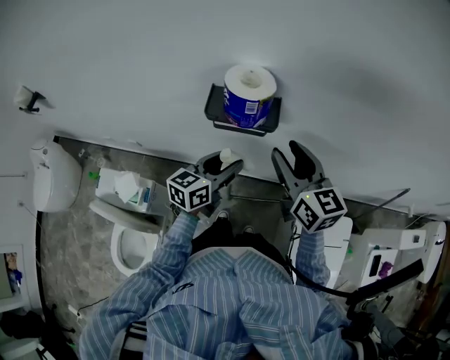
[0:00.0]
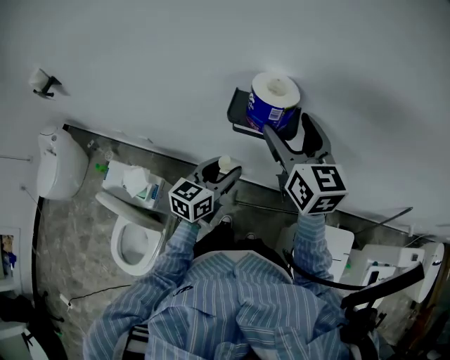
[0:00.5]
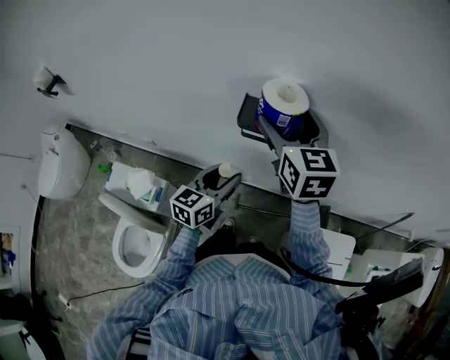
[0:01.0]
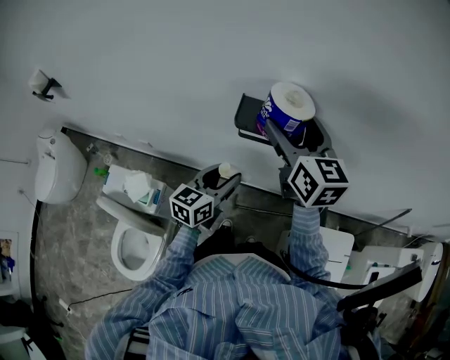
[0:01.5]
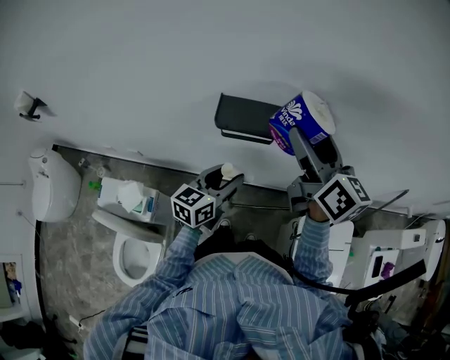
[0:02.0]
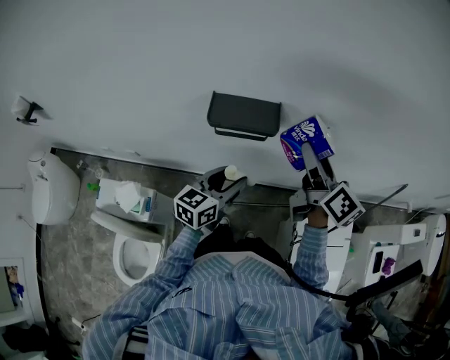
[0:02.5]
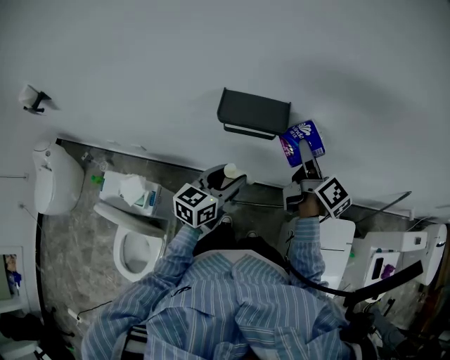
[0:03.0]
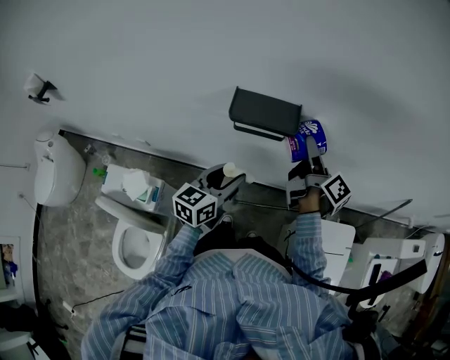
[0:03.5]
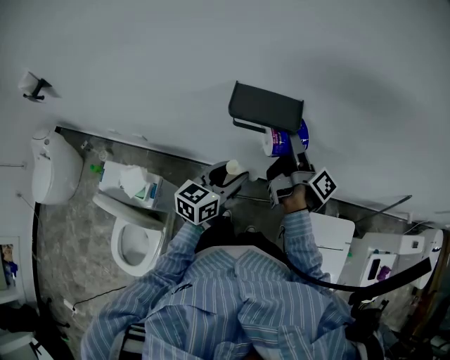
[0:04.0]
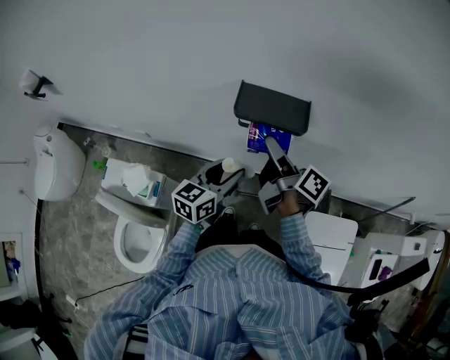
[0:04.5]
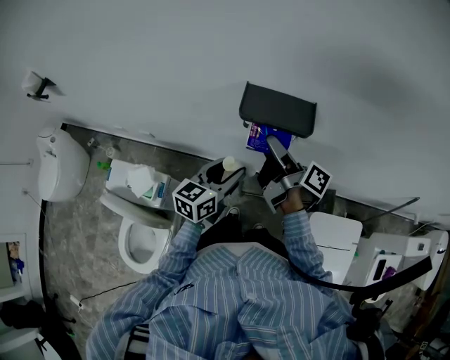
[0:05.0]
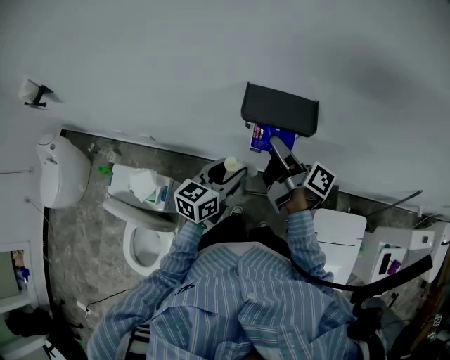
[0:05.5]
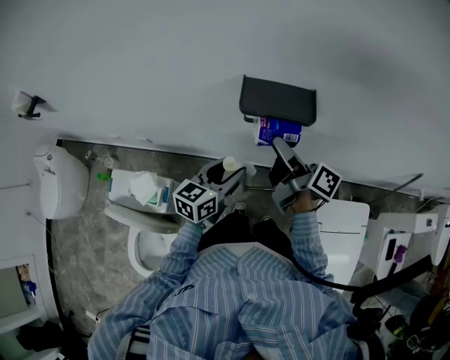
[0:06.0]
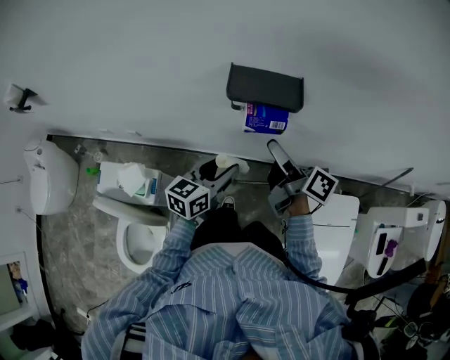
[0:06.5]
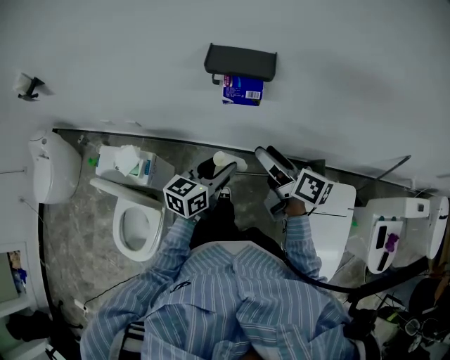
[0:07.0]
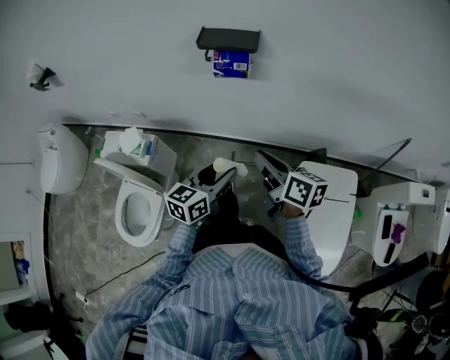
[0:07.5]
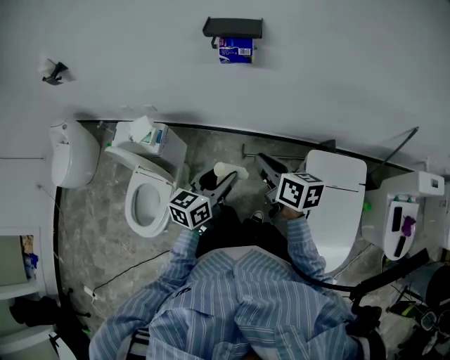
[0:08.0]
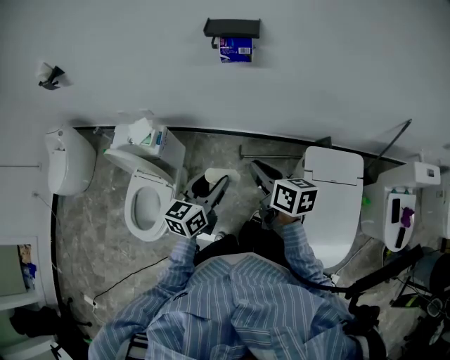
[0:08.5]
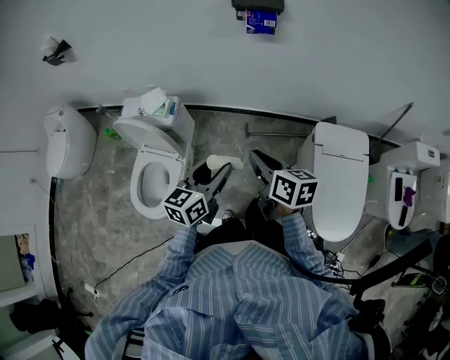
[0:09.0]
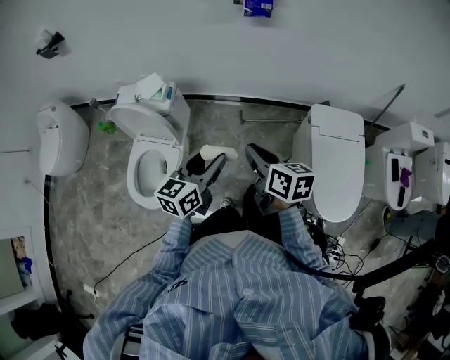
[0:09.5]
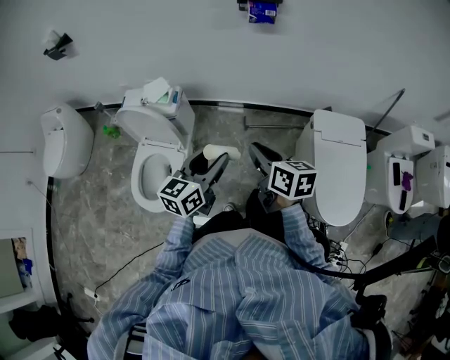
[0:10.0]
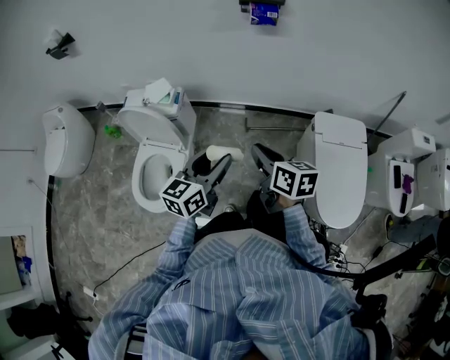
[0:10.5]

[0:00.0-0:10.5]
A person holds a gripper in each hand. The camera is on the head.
0:00.0 to 0:02.0: The right gripper goes approximately 10 cm upward, goes to the left and returns, some 10 cm each way, changes its angle by about 20 degrees, and opens.
0:02.0 to 0:04.0: The right gripper goes roughly 15 cm downward, and rolls clockwise, seen from behind, by about 60 degrees.
0:04.0 to 0:06.5: The right gripper shifts some 5 cm backward, and rotates about 20 degrees.
0:06.5 to 0:08.5: Both grippers move backward, approximately 30 cm. The right gripper swivels roughly 30 degrees, and closes up.
0:08.5 to 0:10.5: The two grippers go roughly 20 cm backward and to the left.

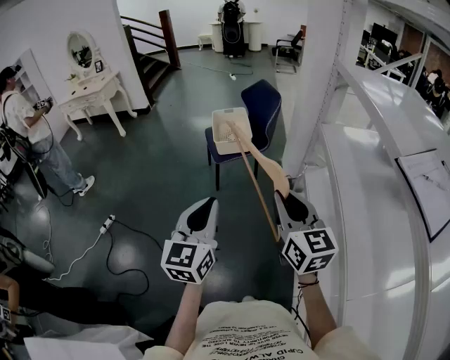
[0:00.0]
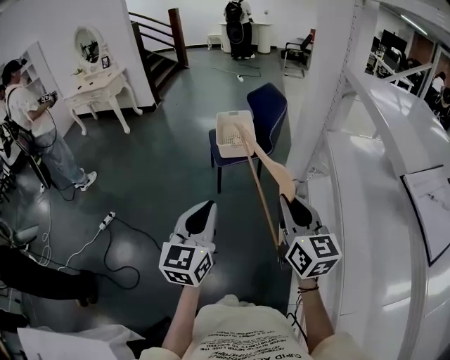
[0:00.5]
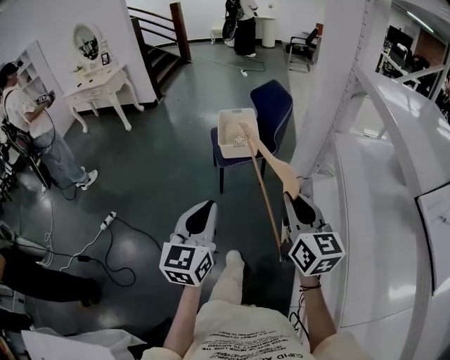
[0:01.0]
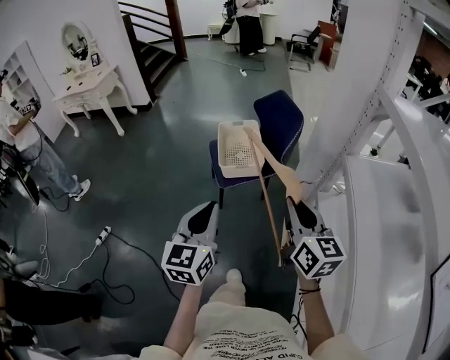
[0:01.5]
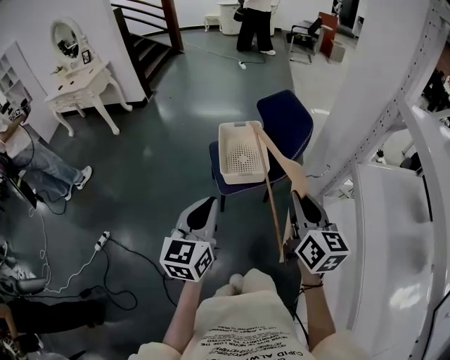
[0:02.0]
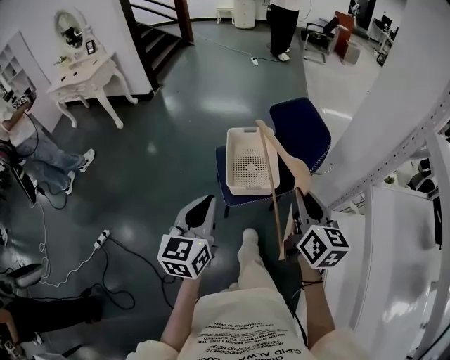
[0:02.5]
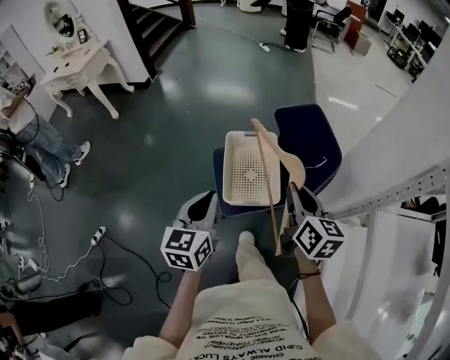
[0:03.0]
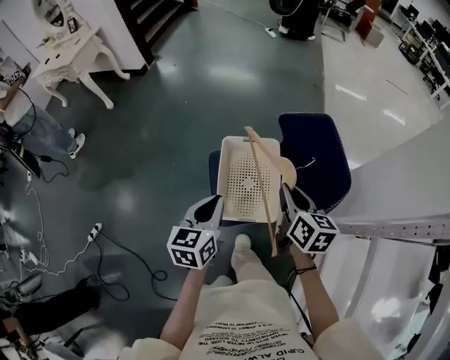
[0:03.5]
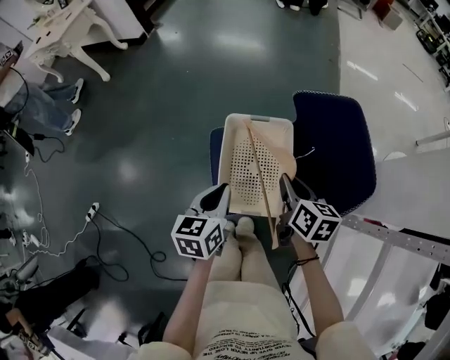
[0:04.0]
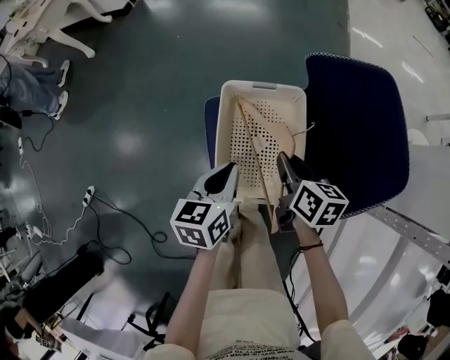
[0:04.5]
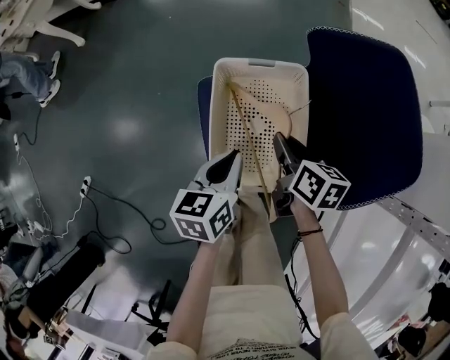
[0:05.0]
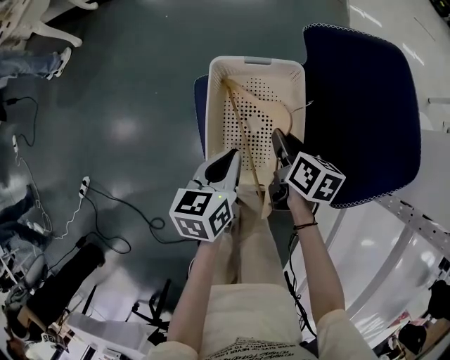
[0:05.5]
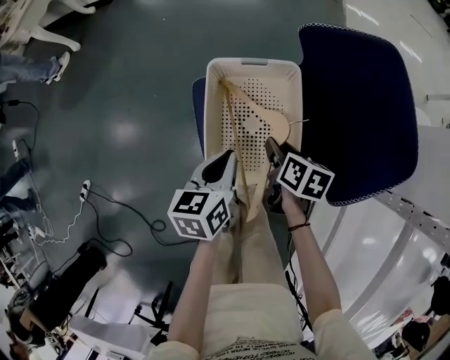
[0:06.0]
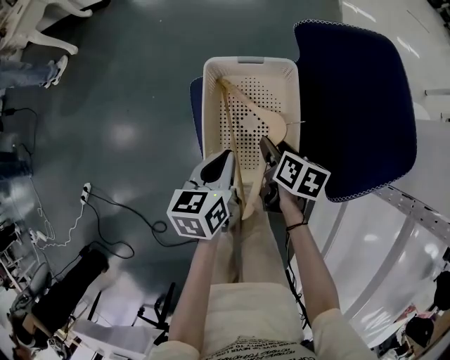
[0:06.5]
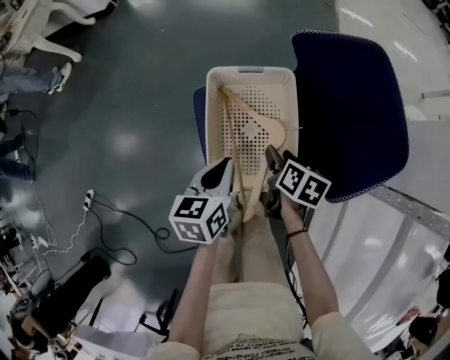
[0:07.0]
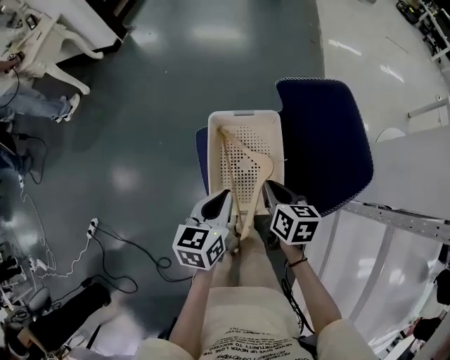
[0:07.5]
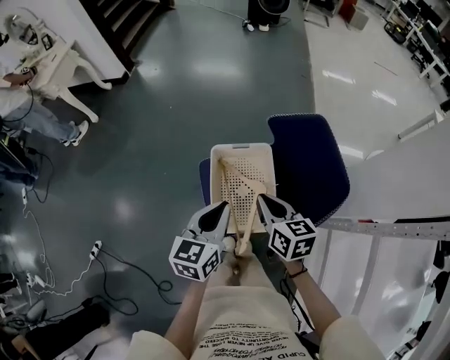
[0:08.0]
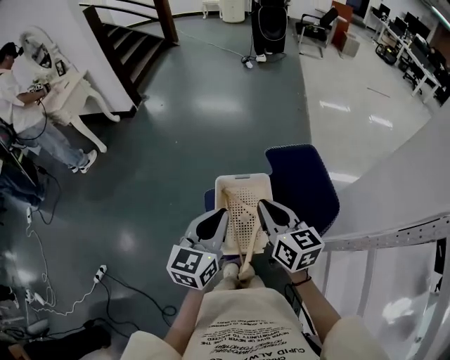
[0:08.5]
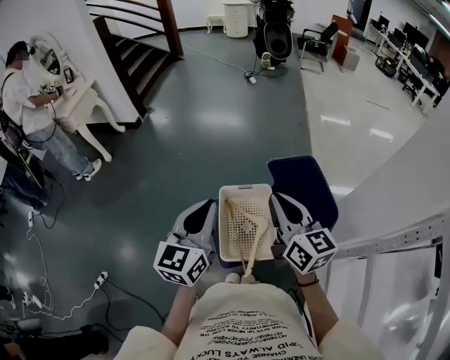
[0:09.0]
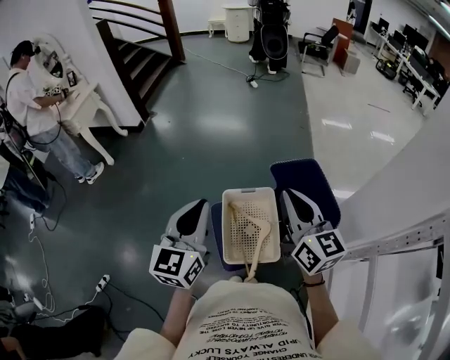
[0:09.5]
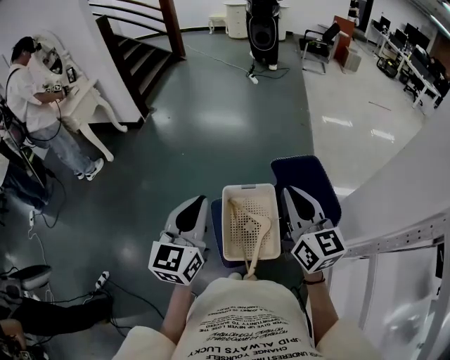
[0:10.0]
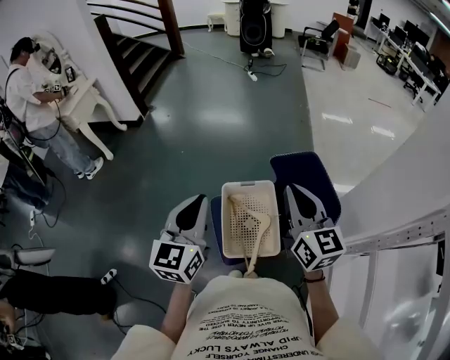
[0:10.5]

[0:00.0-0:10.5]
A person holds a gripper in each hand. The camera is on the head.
0:00.0 to 0:02.0: Both grippers move forward, approximately 35 cm.
0:02.0 to 0:04.0: Both grippers travel together forward and downward, roughly 50 cm. The left gripper swivels approximately 30 degrees. The right gripper turns by approximately 30 degrees.
0:04.0 to 0:06.5: The right gripper shifts roughly 15 cm downward, rotates some 20 degrees, and opens; the left gripper heads downward, covering approximately 10 cm.
0:06.5 to 0:08.5: Both grippers travel together upward, about 30 cm. The right gripper points its fingers about 30 degrees further upward, and closes its fingers; the left gripper swivels some 30 degrees.
0:08.5 to 0:10.5: The left gripper goes approximately 10 cm upward and to the left, while the right gripper travels upward by approximately 10 cm, and turns by roughly 20 degrees.

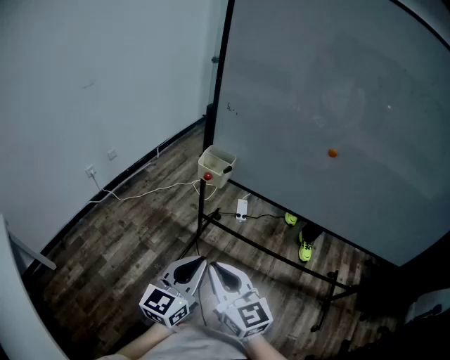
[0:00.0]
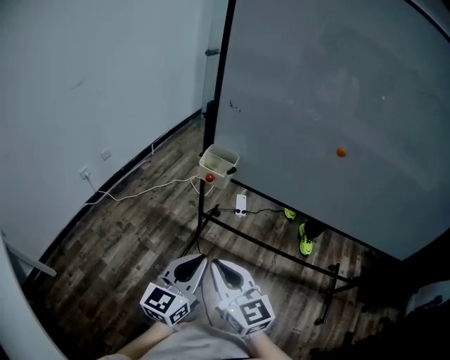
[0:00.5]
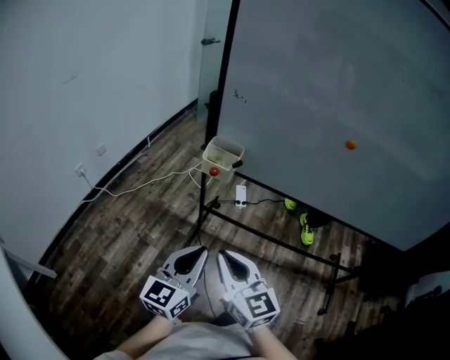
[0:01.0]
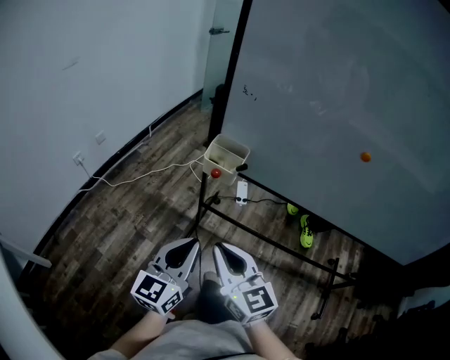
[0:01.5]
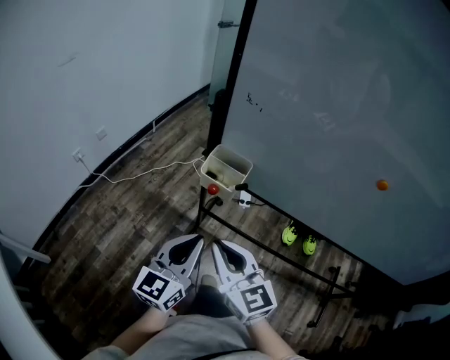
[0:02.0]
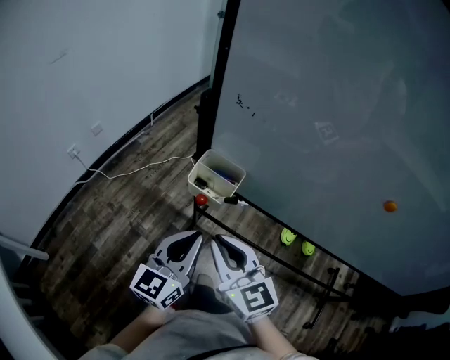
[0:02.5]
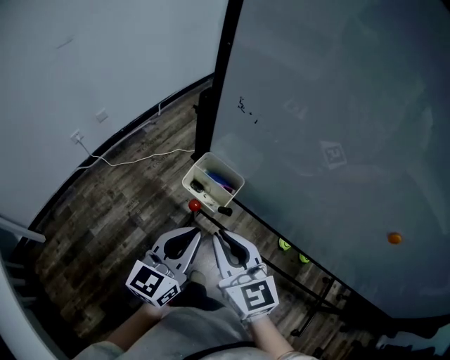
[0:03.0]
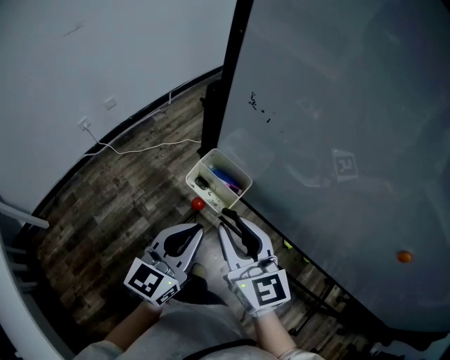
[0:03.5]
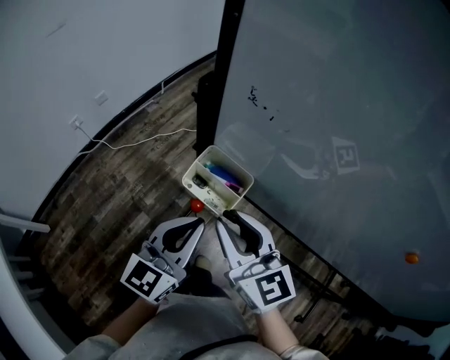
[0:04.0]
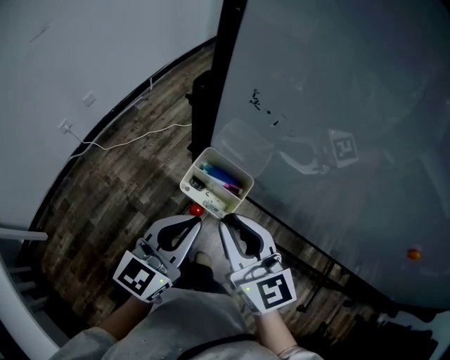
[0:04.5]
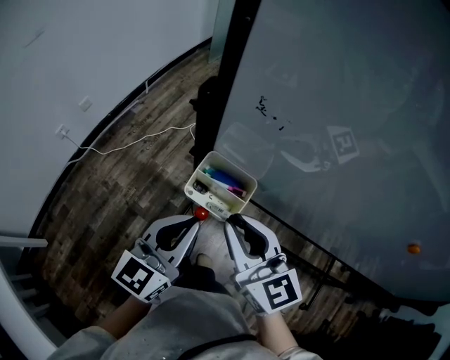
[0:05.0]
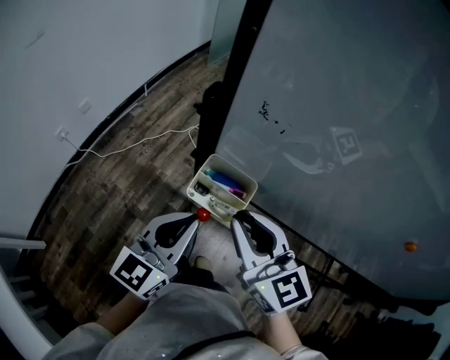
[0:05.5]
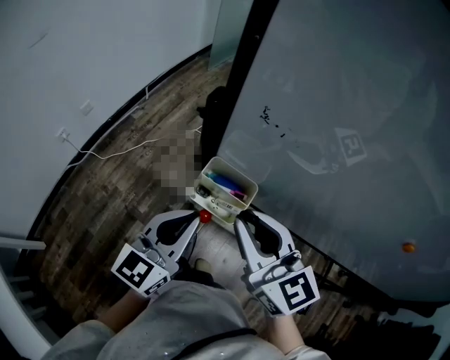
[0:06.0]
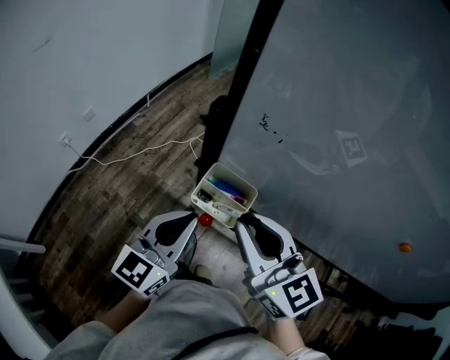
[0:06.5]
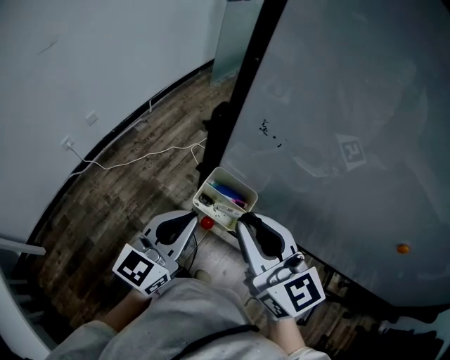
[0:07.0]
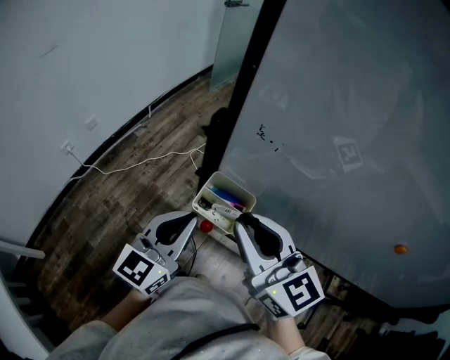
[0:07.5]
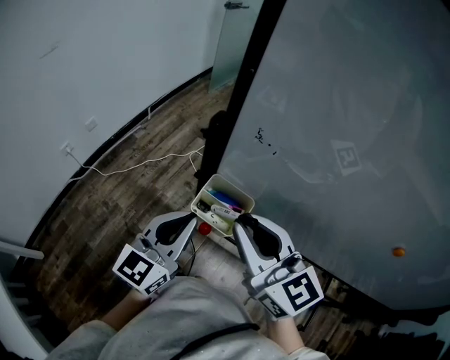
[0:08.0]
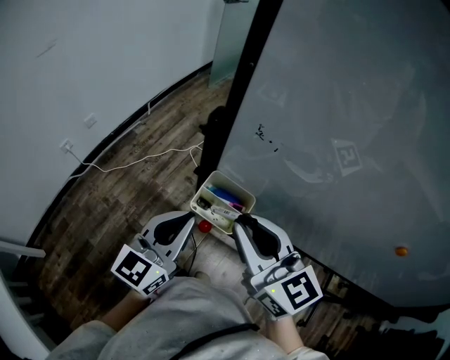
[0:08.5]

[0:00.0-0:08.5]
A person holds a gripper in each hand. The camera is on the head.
0:00.0 to 0:02.0: Both grippers travel together forward, about 20 cm.
0:02.0 to 0:04.0: The grippers both shift forward by some 15 cm. The right gripper opens up.
0:04.0 to 0:06.5: The left gripper moves about 5 cm. The right gripper is displaced upward by about 5 cm.
0:06.5 to 0:08.5: There are only small adjustments of the grippers.
